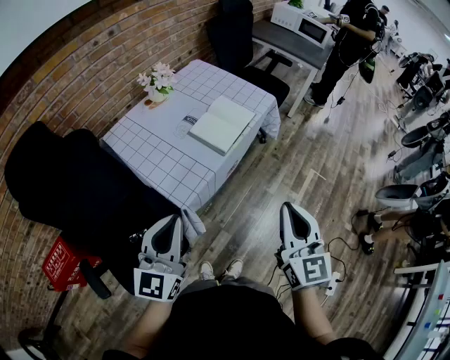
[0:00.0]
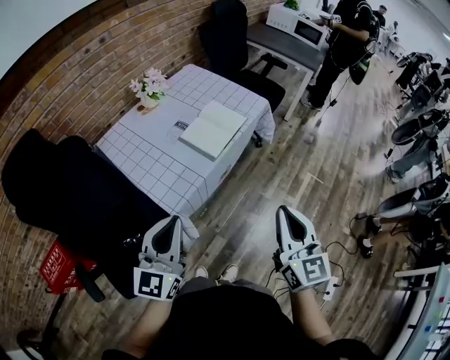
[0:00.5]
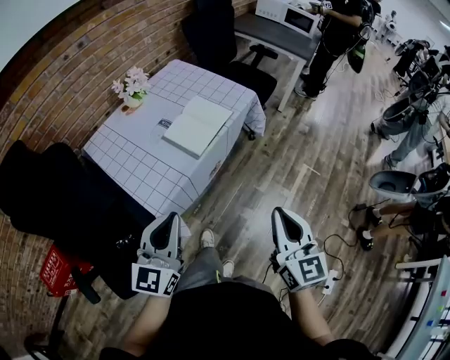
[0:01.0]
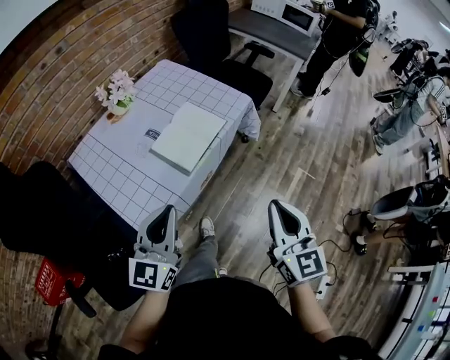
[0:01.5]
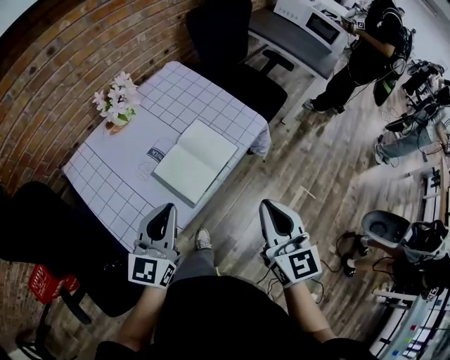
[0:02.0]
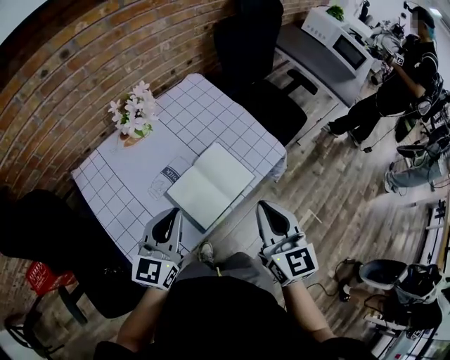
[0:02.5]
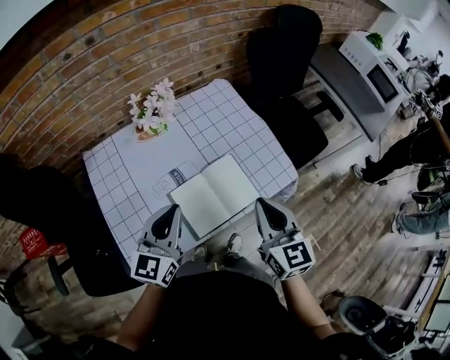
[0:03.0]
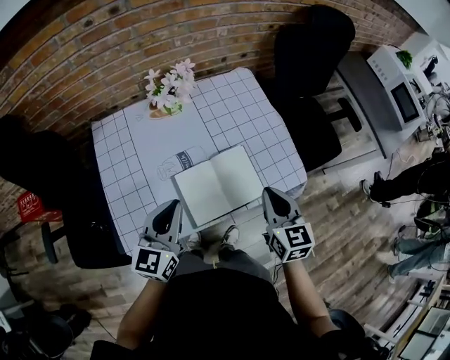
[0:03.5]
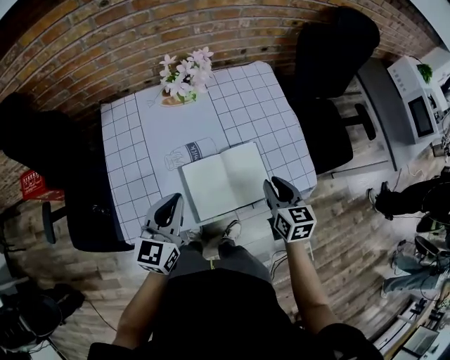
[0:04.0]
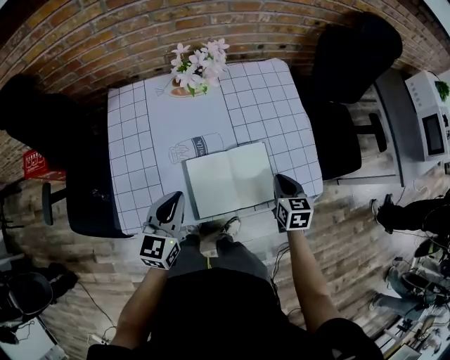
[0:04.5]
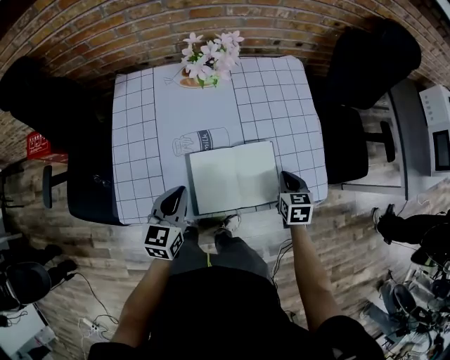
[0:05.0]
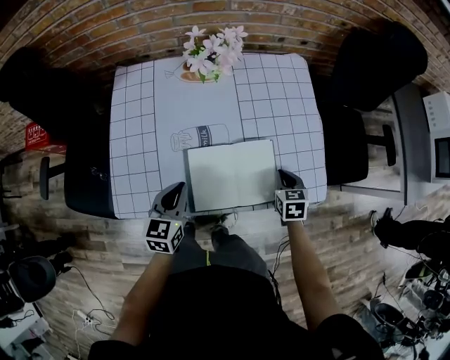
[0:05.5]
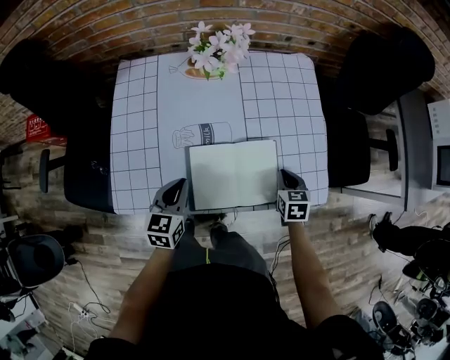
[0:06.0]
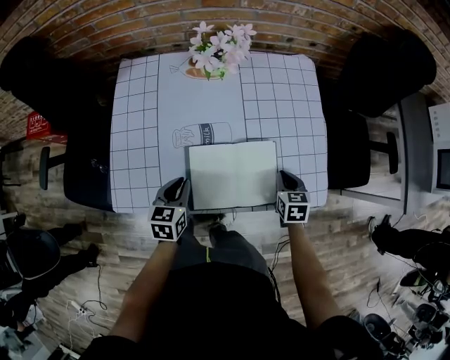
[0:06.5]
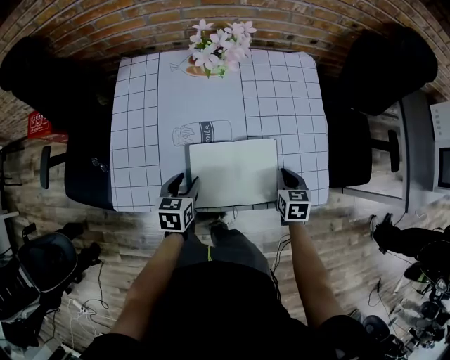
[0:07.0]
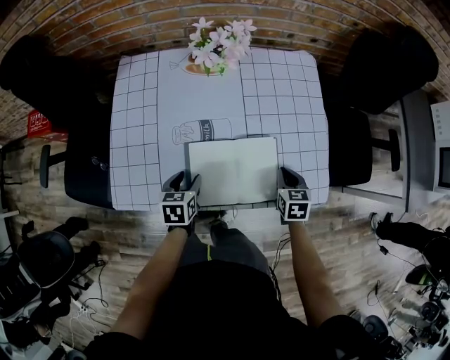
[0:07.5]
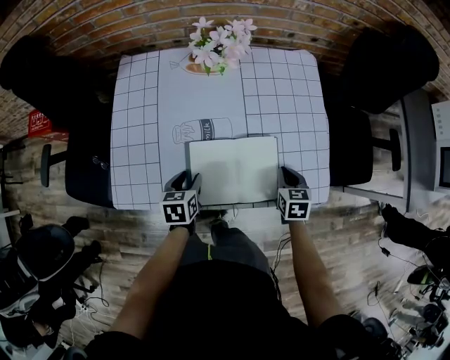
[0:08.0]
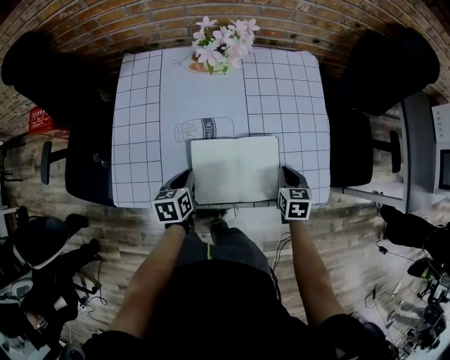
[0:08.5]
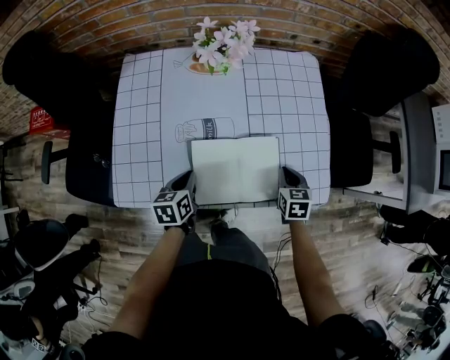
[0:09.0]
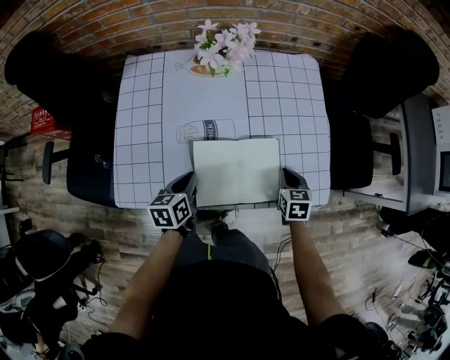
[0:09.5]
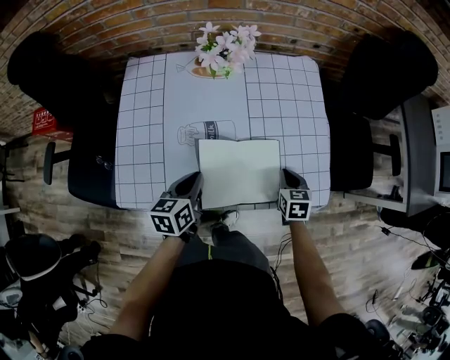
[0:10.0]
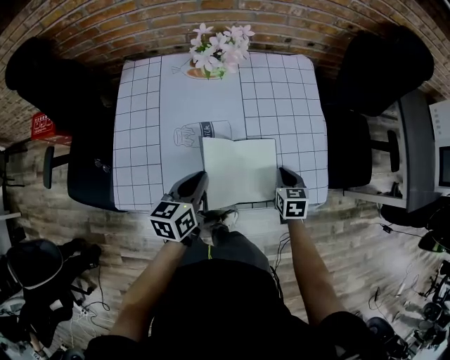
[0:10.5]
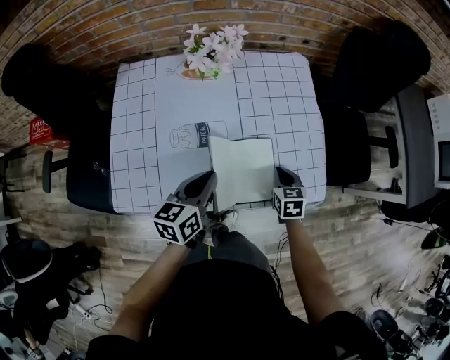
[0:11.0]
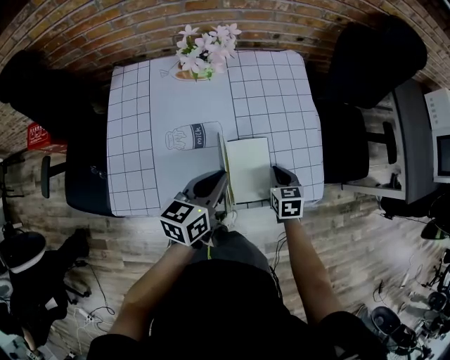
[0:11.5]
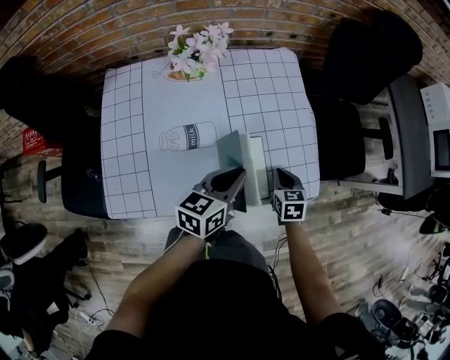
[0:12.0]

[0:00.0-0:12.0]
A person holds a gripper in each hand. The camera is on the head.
0:00.0 to 0:02.0: The two grippers go about 30 cm forward.
0:02.0 to 0:04.0: The left gripper shifts by about 10 cm, and rotates some 30 degrees. The right gripper moves approximately 30 cm, changes its angle by about 40 degrees, and opens its fingers.
0:04.0 to 0:06.0: The right gripper heads downward and forward, covering approximately 15 cm, rotates about 20 degrees, and closes up; the left gripper travels downward by approximately 15 cm, and turns by roughly 20 degrees.
0:06.0 to 0:08.0: The left gripper heads downward, covering about 10 cm, changes its angle by approximately 20 degrees, and opens its fingers.
0:08.0 to 0:10.0: The left gripper goes approximately 10 cm upward, and closes.
0:10.0 to 0:12.0: The left gripper moves to the right and upward, about 20 cm, and swivels approximately 30 degrees.

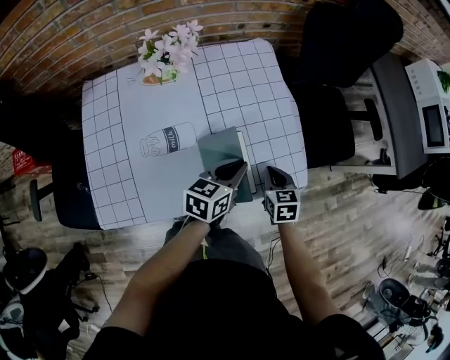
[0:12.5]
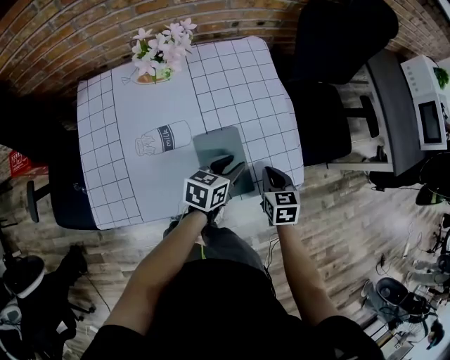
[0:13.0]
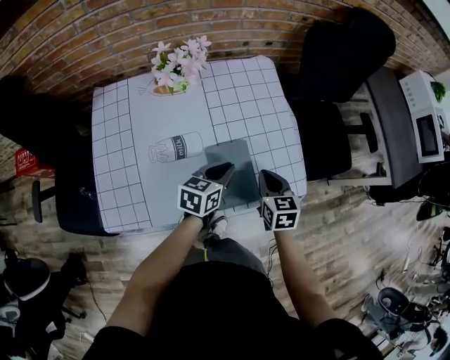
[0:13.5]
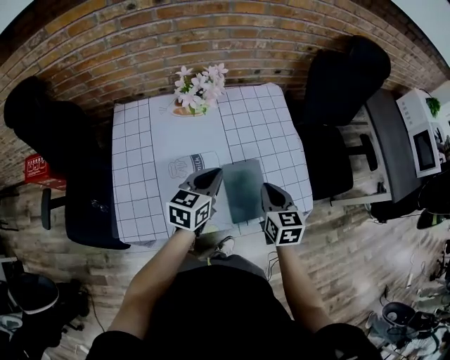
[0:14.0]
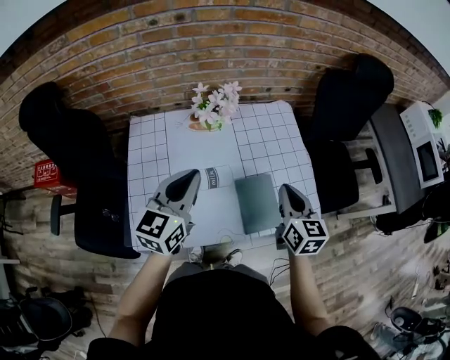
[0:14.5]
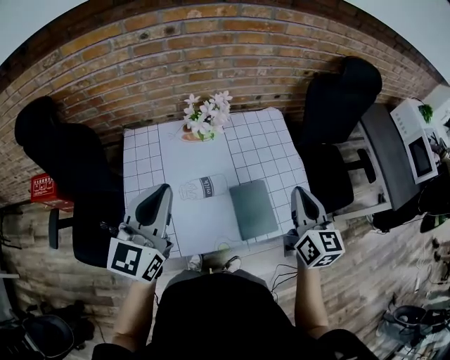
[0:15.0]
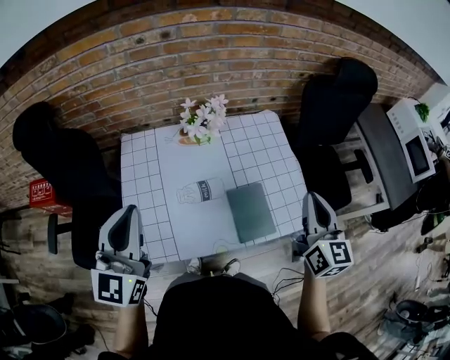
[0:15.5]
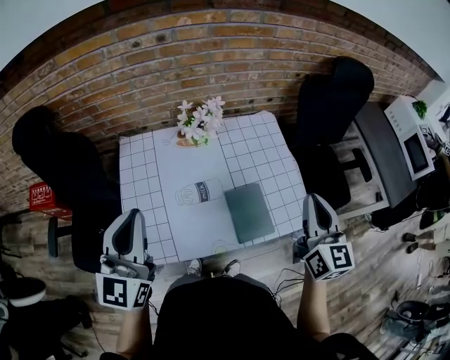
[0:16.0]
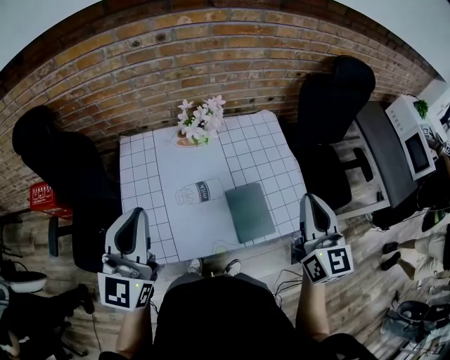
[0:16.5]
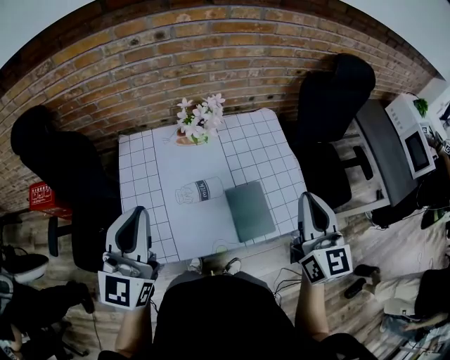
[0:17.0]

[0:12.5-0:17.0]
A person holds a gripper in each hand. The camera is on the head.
0:12.5 to 0:14.5: The left gripper moves to the left and upward, about 35 cm, swivels approximately 30 degrees, and opens, then closes once more, while the right gripper travels upward and to the left by roughly 25 cm, and rotates roughly 30 degrees.
0:14.5 to 0:17.0: The right gripper heads upward, covering some 15 cm, and rotates some 20 degrees; the left gripper goes about 15 cm upward, backward and to the left, and rotates roughly 20 degrees.

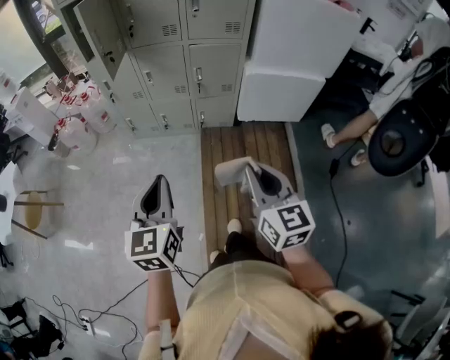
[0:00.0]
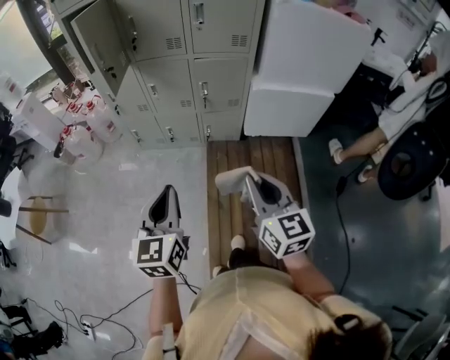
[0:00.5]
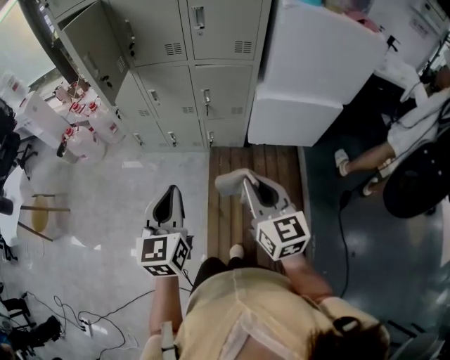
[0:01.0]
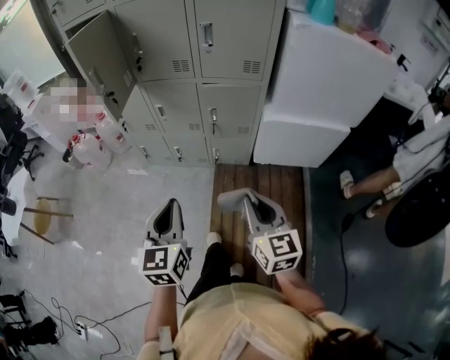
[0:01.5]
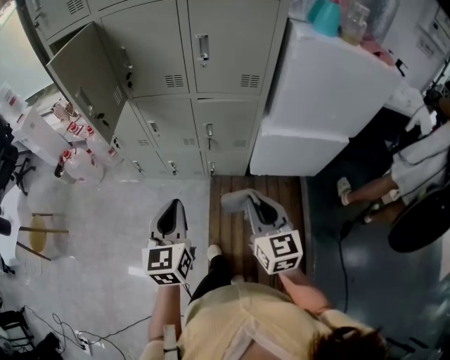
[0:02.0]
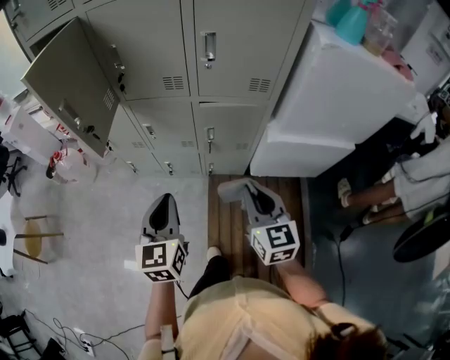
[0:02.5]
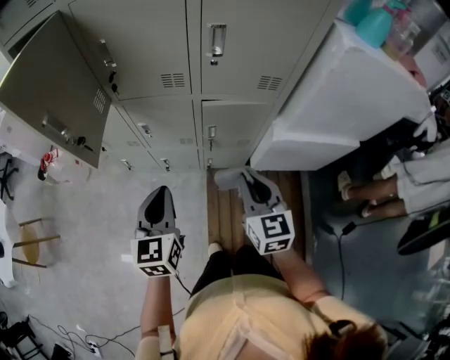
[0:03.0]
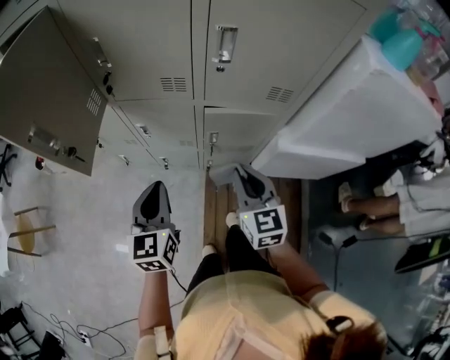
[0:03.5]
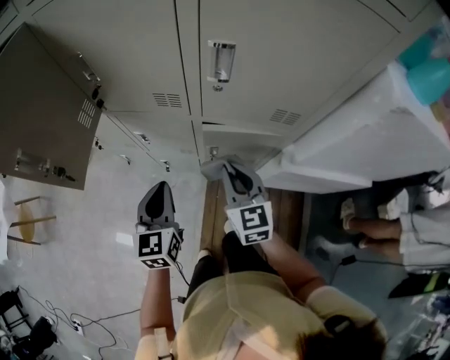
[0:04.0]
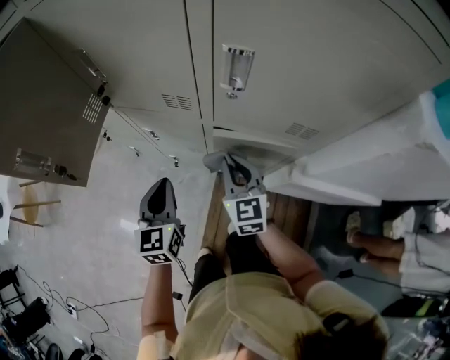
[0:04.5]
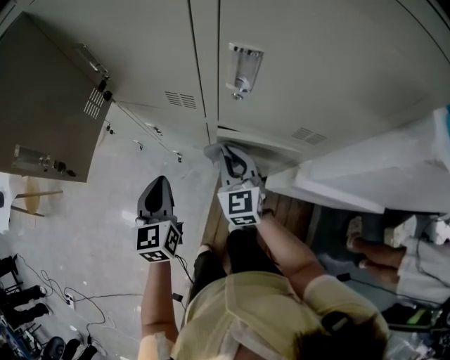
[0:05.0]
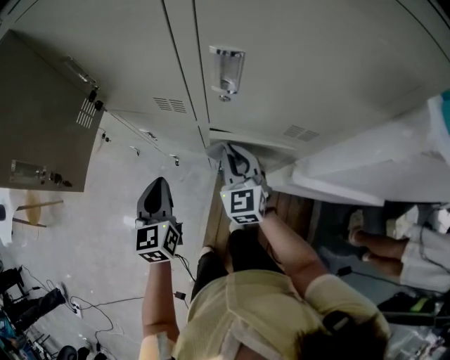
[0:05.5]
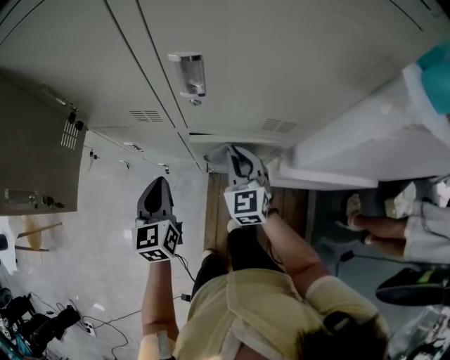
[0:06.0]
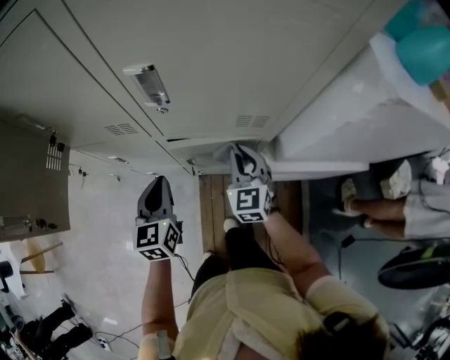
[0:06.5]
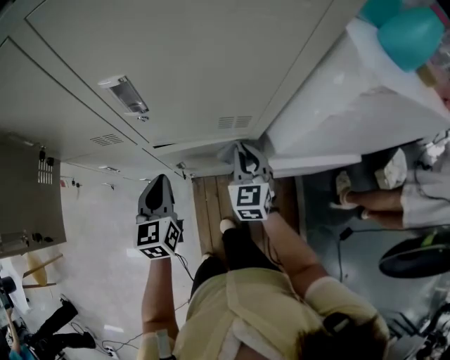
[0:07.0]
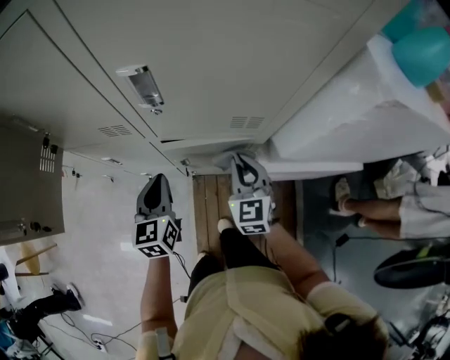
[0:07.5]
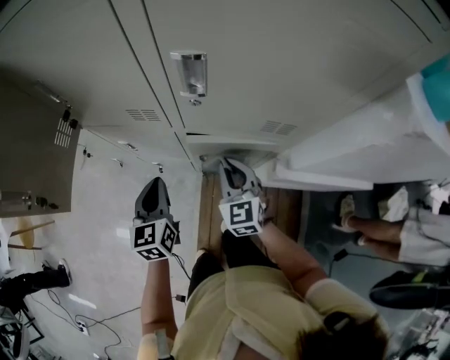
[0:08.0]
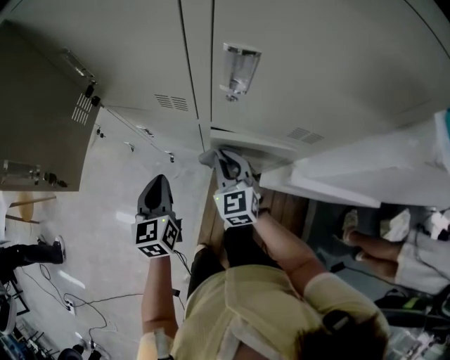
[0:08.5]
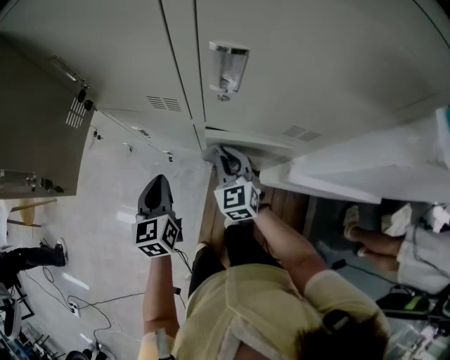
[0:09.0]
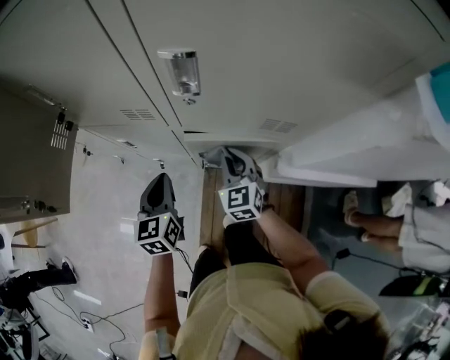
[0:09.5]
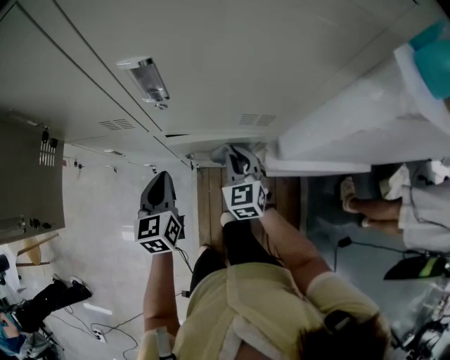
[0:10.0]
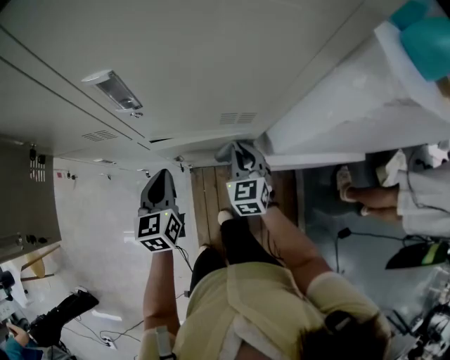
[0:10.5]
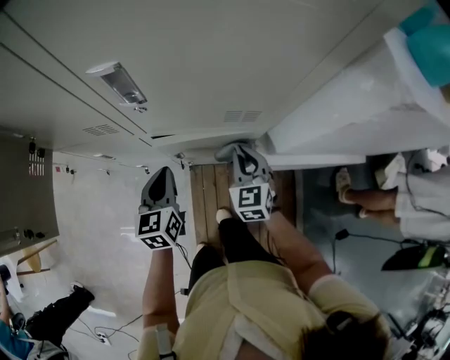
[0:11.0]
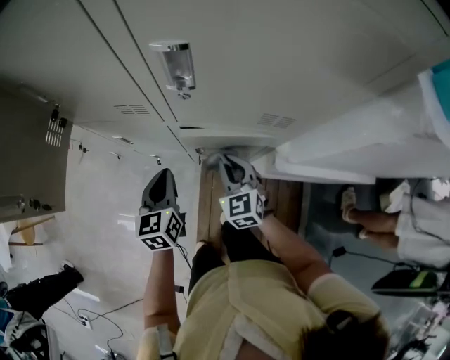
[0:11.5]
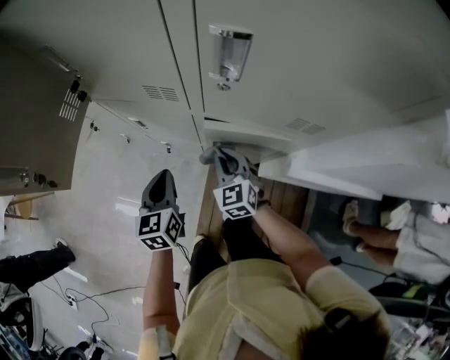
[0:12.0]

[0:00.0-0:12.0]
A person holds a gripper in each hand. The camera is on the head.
0:00.0 to 0:02.0: The two grippers go some 25 cm forward.
0:02.0 to 0:04.0: Both grippers move forward, about 30 cm.
0:04.0 to 0:06.0: The left gripper shifts approximately 5 cm forward. Meanwhile the right gripper shifts roughly 10 cm forward and to the right.
0:06.0 to 0:08.0: The left gripper goes to the right and returns, roughly 10 cm each way. Meanwhile the right gripper travels to the right and back again, approximately 10 cm each way.
0:08.0 to 0:10.0: Both grippers move to the right, about 5 cm.
0:10.0 to 0:12.0: The right gripper travels to the left by about 10 cm. The left gripper is displaced to the left by about 10 cm.
